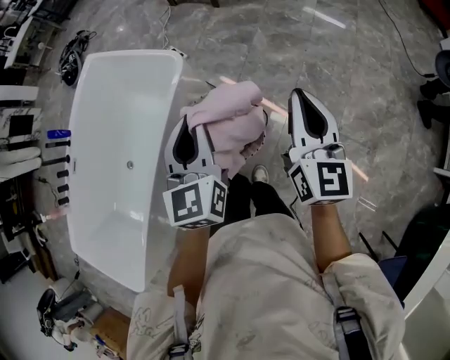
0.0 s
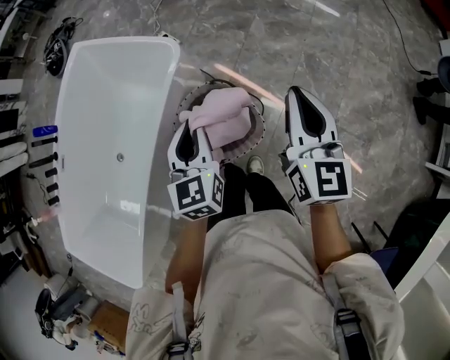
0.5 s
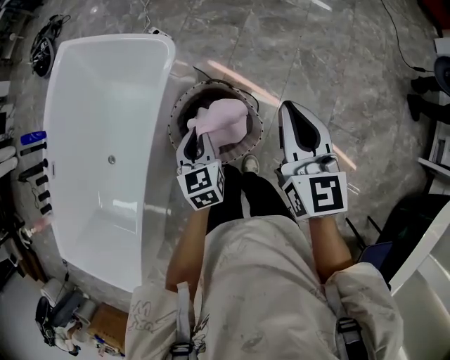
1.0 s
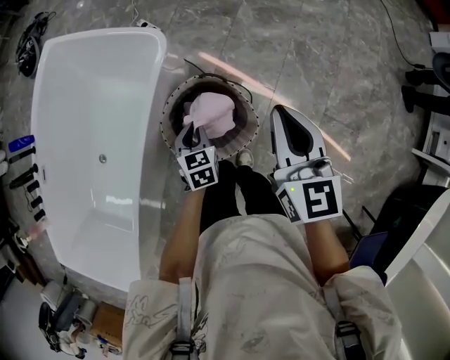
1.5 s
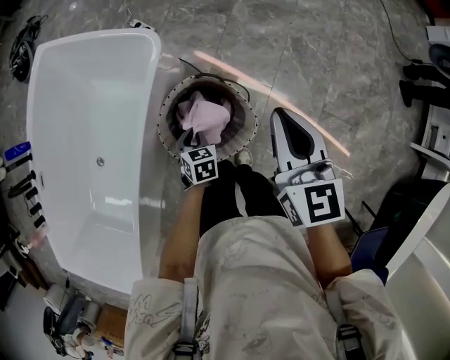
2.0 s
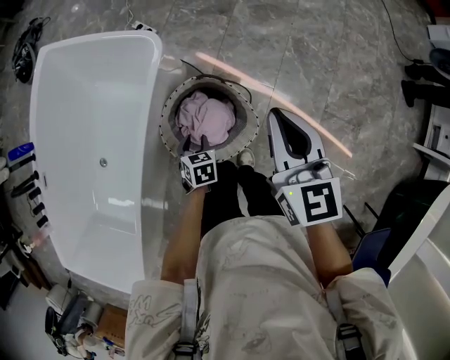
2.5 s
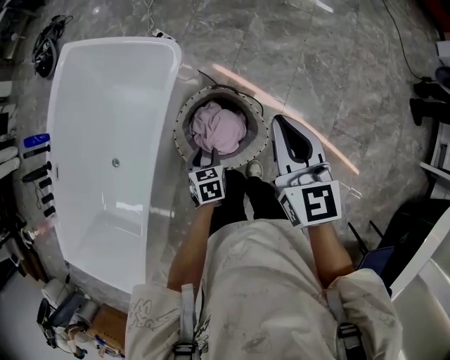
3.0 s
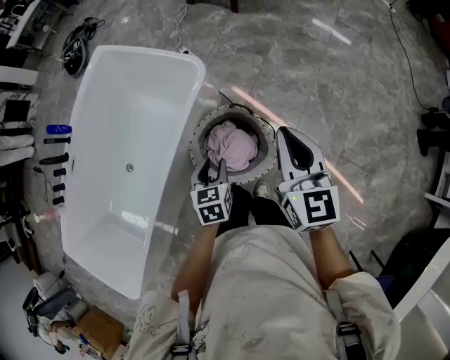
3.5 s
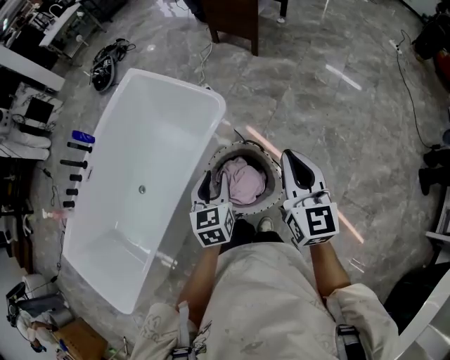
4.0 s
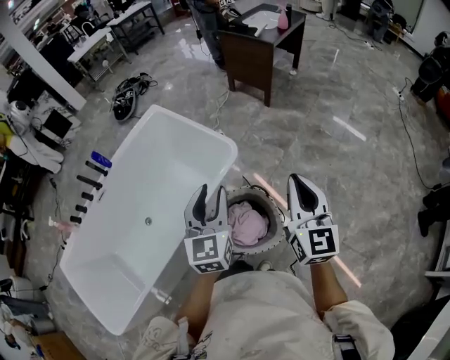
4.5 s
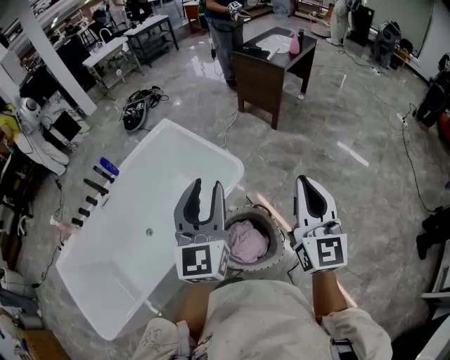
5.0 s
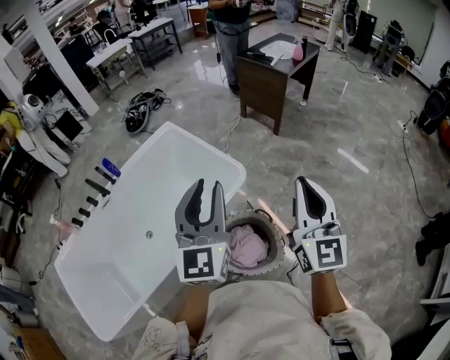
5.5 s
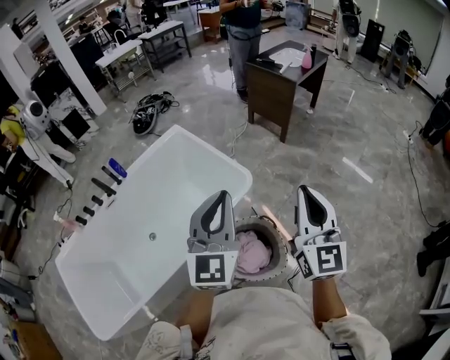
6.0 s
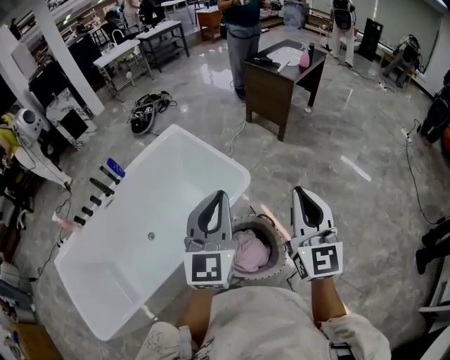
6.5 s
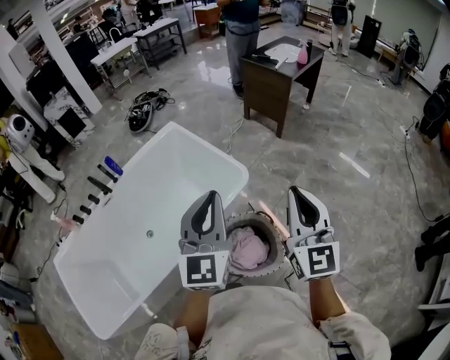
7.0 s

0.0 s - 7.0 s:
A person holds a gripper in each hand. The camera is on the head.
0.0 s - 2.0 s: The left gripper heads downward, covering about 40 cm, and angles its fingers downward, by approximately 50 degrees; the right gripper goes about 15 cm to the left, downward and forward.
2.0 s - 3.5 s: The left gripper shifts roughly 15 cm upward, and opens up, while the right gripper moves upward, approximately 5 cm.
3.5 s - 5.0 s: The left gripper travels upward by approximately 40 cm, and tips its fingers upward by roughly 50 degrees. Meanwhile the right gripper goes roughly 20 cm upward, and swivels about 20 degrees.
5.0 s - 7.0 s: The left gripper closes.

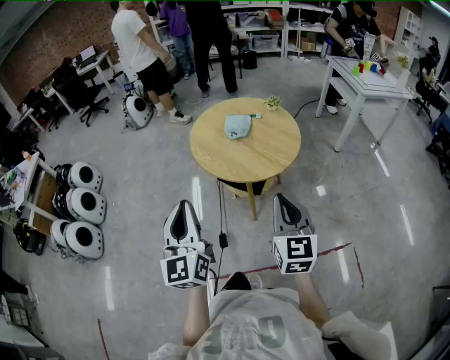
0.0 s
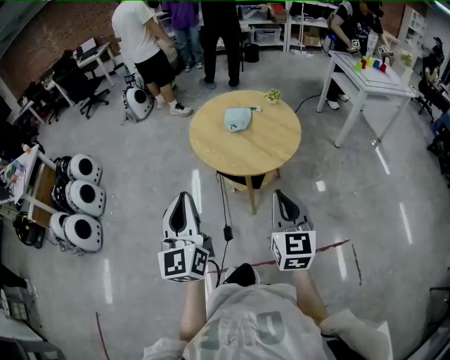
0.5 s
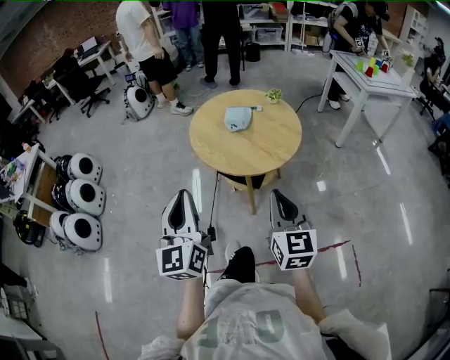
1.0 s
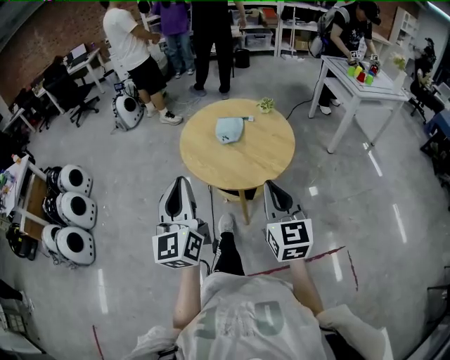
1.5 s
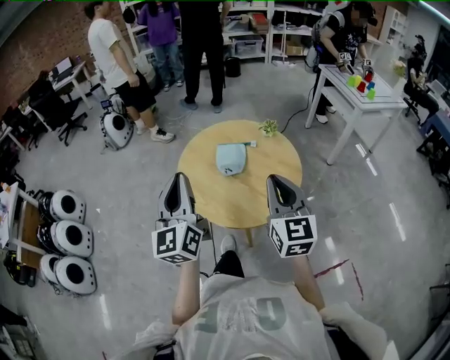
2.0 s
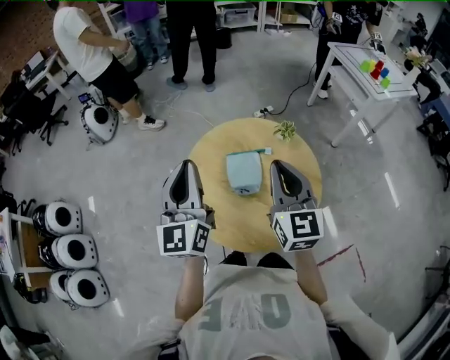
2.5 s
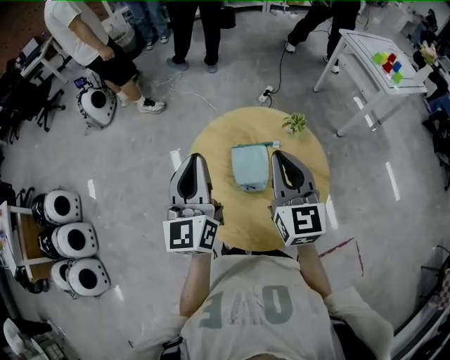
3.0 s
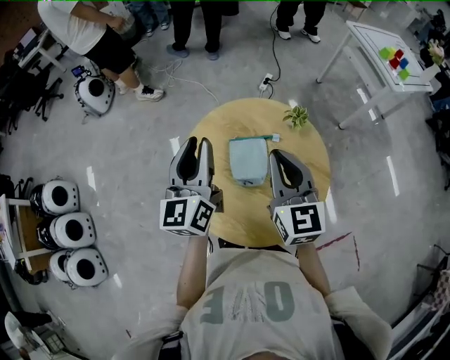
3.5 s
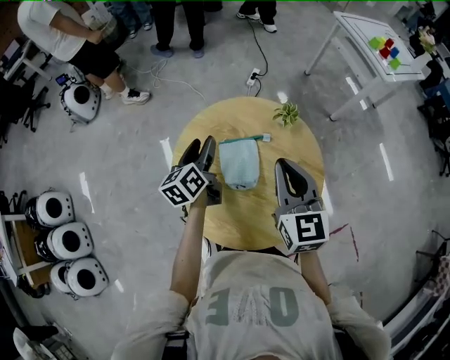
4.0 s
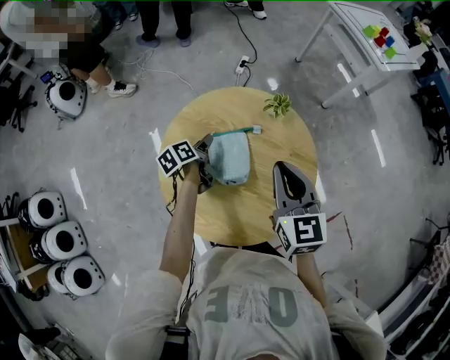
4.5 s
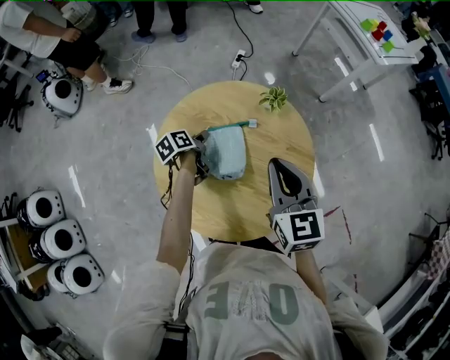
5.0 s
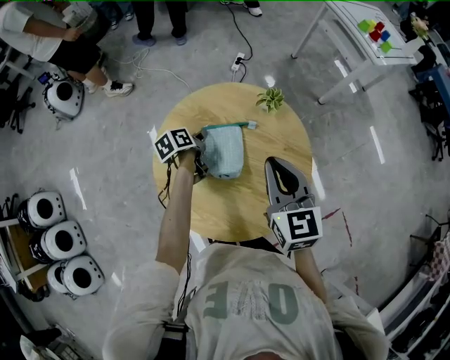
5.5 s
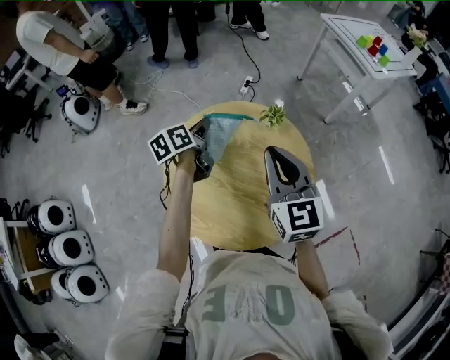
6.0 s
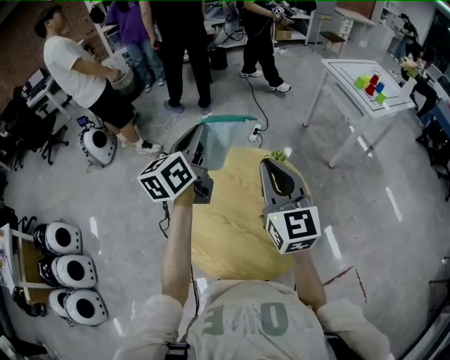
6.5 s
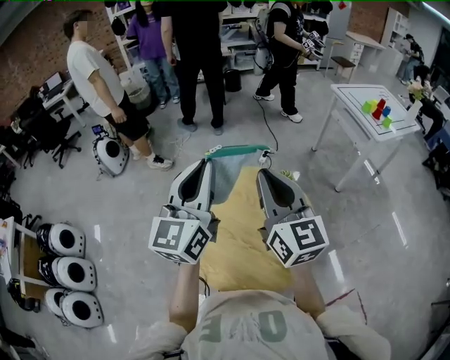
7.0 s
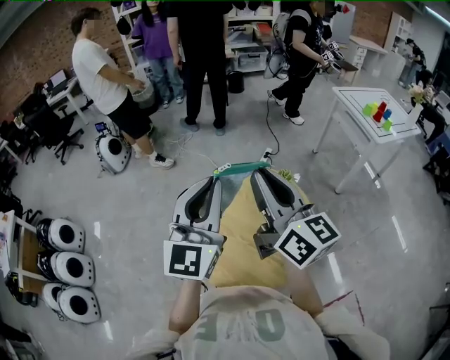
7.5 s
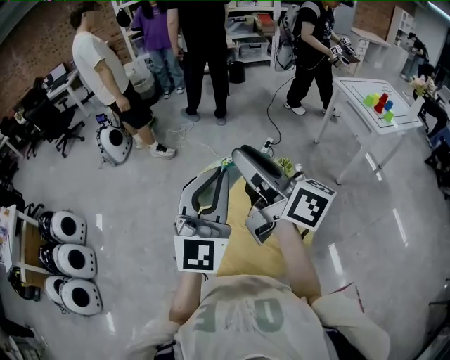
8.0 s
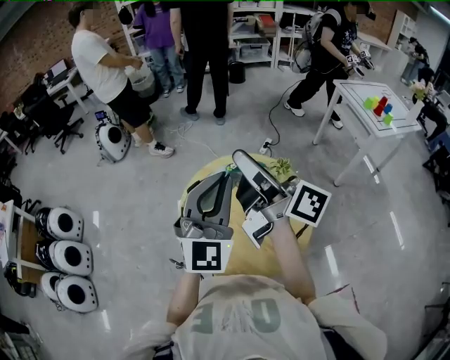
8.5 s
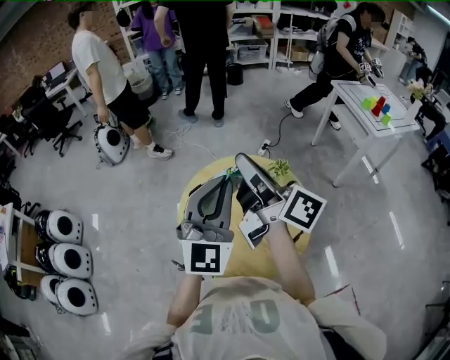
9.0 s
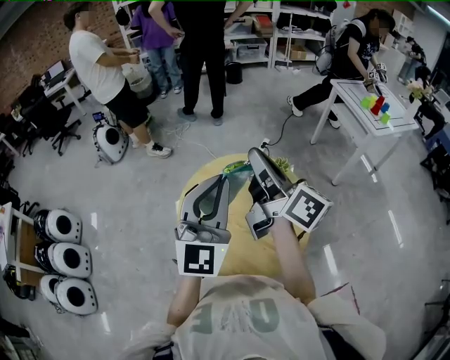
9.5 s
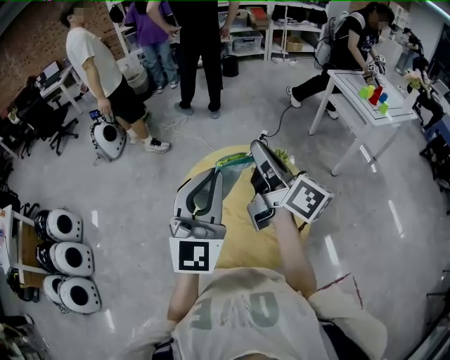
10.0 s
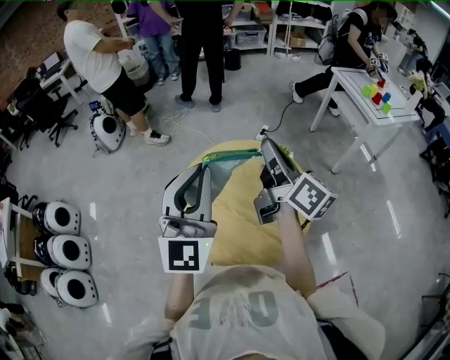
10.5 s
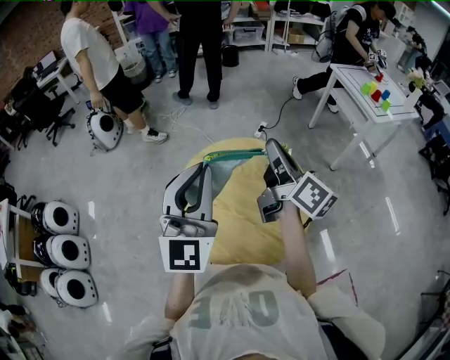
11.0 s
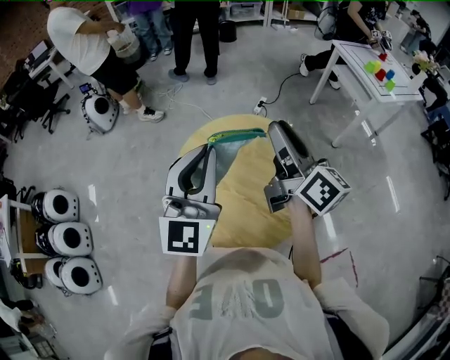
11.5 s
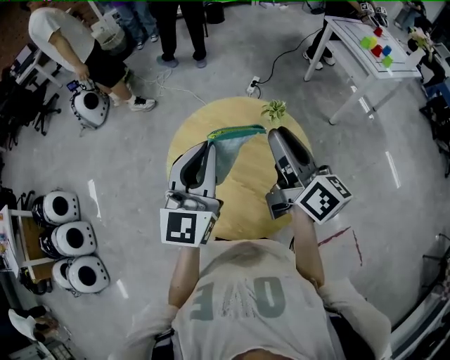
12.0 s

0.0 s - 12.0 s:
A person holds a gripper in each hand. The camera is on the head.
0.0 s - 2.0 s: The grippers both shift forward by about 25 cm.
2.0 s - 4.0 s: The left gripper shifts approximately 40 cm forward and downward, turns by some 50 degrees, and opens. Meanwhile the right gripper is displaced forward by some 25 cm.
4.0 s - 6.0 s: The left gripper heads forward, covering some 5 cm, goes downward and returns, about 15 cm each way, and closes its fingers.
6.0 s - 8.0 s: The left gripper shifts some 35 cm upward and backward, and twists some 70 degrees clockwise, seen from behind; the right gripper moves upward, roughly 15 cm, turns by about 60 degrees, and opens.
8.0 s - 10.0 s: The right gripper moves roughly 5 cm, and closes.
10.0 s - 12.0 s: The left gripper is displaced downward by approximately 5 cm, while the right gripper is displaced downward and to the right by some 10 cm, and opens.

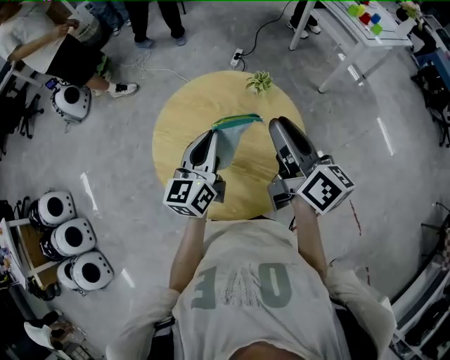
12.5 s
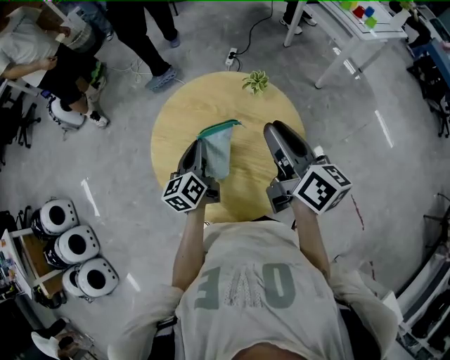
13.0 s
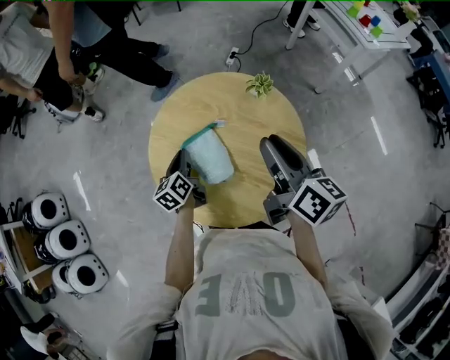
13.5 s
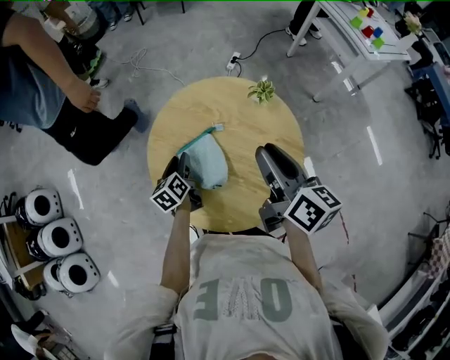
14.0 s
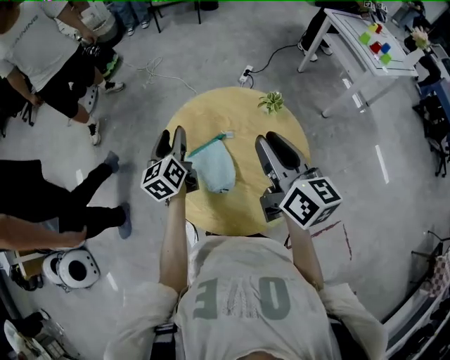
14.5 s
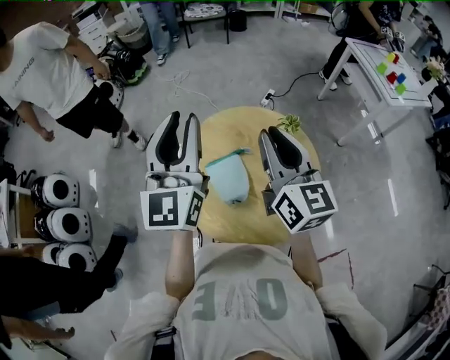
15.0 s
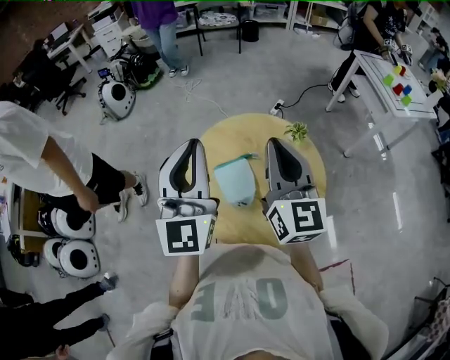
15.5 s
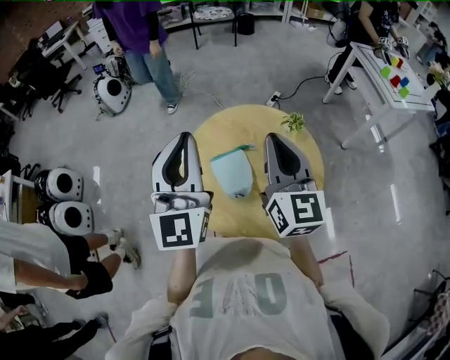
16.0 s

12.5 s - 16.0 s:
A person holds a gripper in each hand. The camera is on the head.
12.5 s - 14.5 s: The right gripper is displaced to the left by approximately 5 cm. The left gripper shifts some 15 cm to the left and forward, reaches about 20 cm downward, then returns, changes its angle by roughly 30 degrees, and opens up.
14.5 s - 16.0 s: The right gripper moves upward, about 5 cm, turns by approximately 30 degrees, and closes; the left gripper shifts some 30 cm upward and backward, rotates about 40 degrees, and closes.

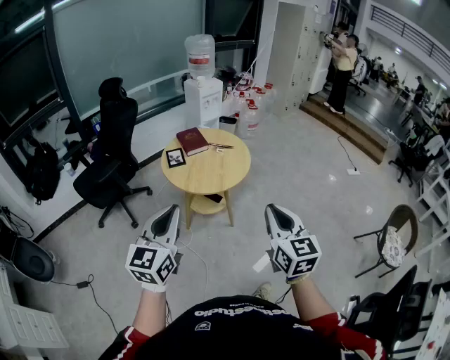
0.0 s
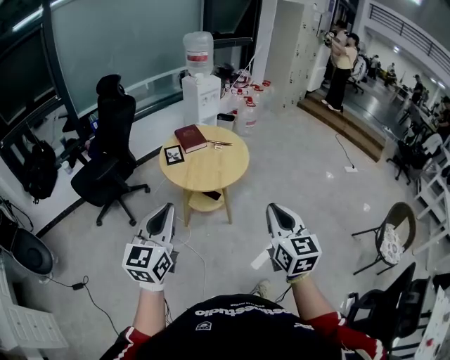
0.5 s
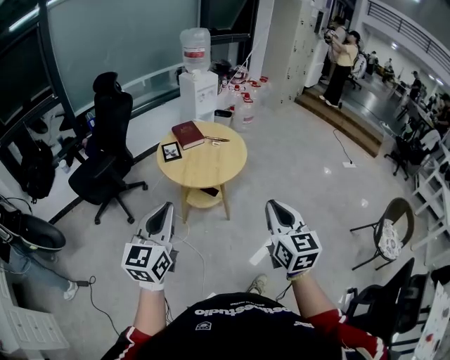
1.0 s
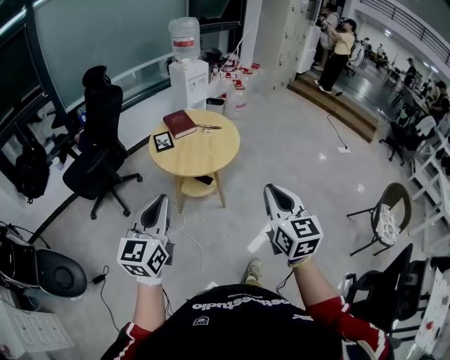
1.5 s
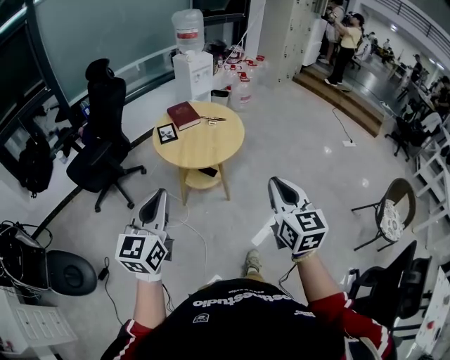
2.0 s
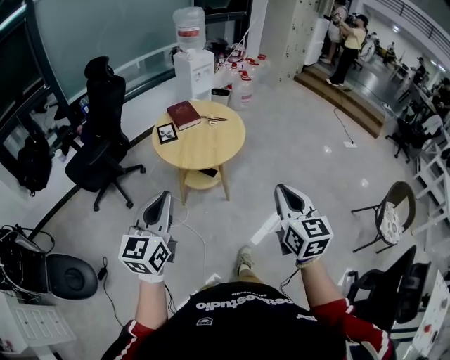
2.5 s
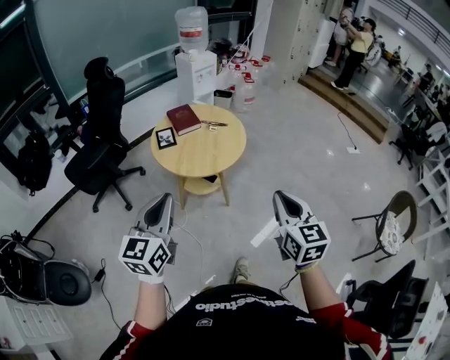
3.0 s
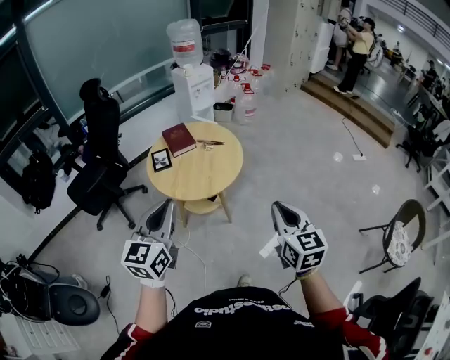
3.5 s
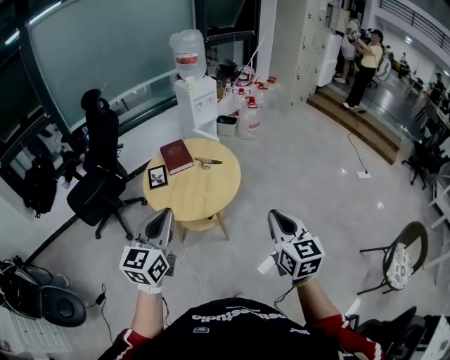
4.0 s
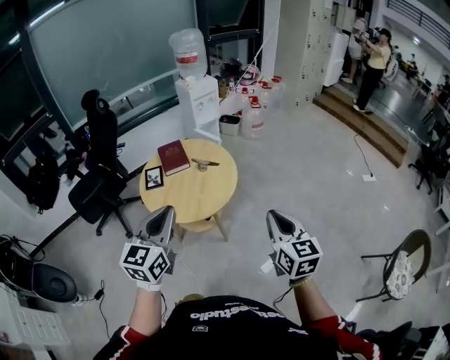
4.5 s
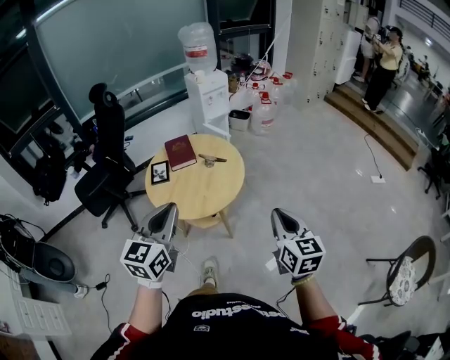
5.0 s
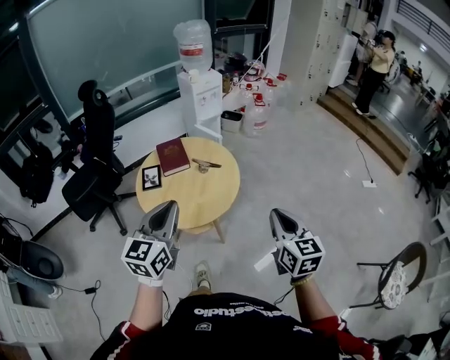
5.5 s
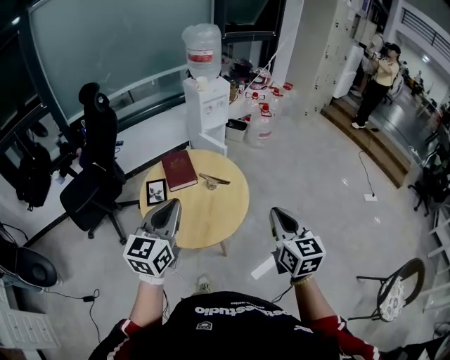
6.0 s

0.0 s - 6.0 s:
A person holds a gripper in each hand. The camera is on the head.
0.0 s - 2.0 s: The grippers make only small movements.
2.0 s - 4.0 s: The two grippers go about 25 cm forward and to the right.
4.0 s - 6.0 s: Both grippers travel together forward, roughly 20 cm.
